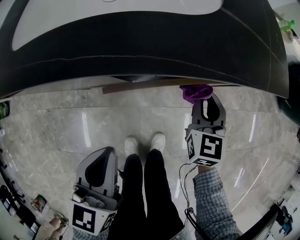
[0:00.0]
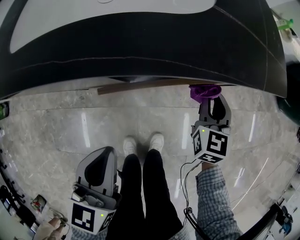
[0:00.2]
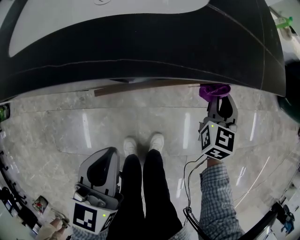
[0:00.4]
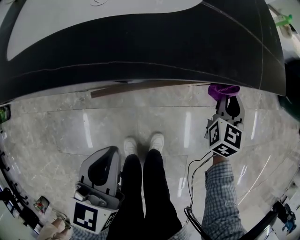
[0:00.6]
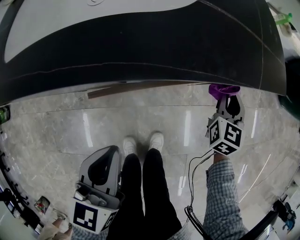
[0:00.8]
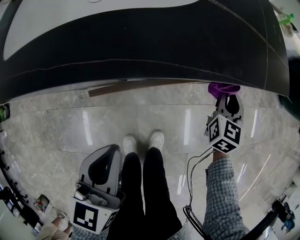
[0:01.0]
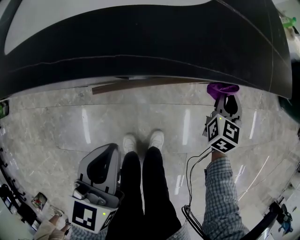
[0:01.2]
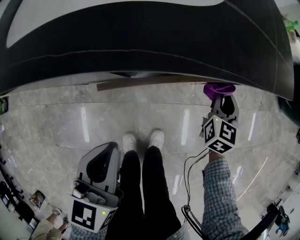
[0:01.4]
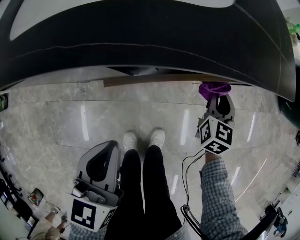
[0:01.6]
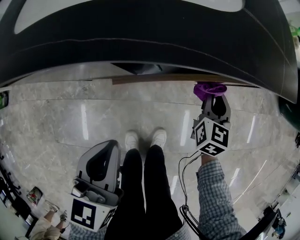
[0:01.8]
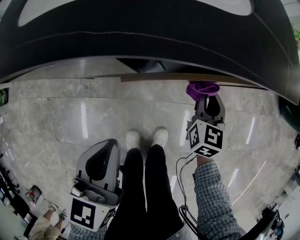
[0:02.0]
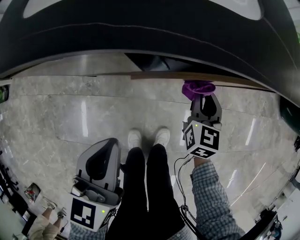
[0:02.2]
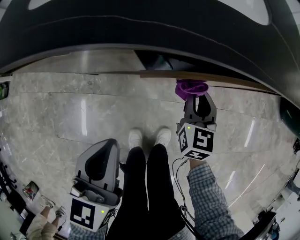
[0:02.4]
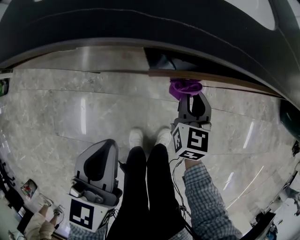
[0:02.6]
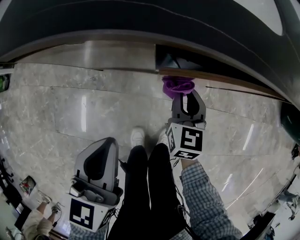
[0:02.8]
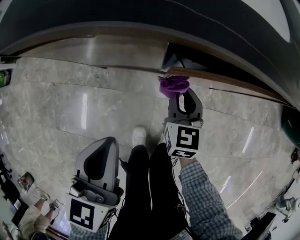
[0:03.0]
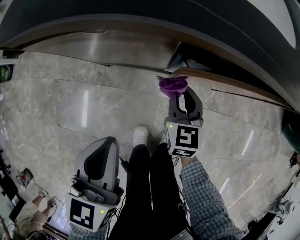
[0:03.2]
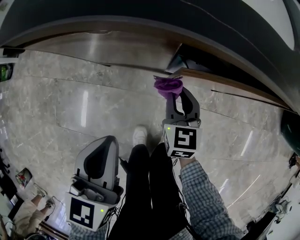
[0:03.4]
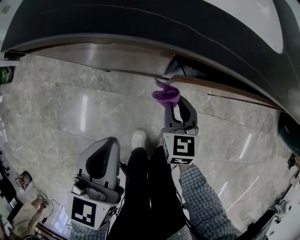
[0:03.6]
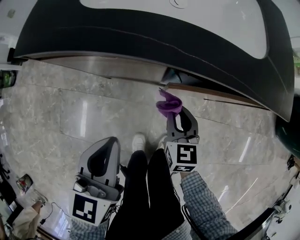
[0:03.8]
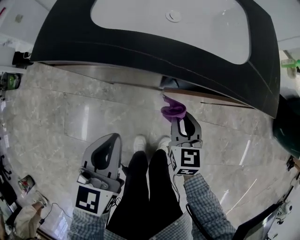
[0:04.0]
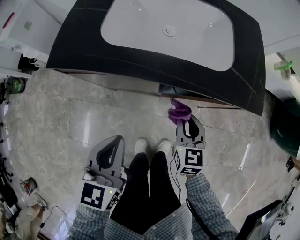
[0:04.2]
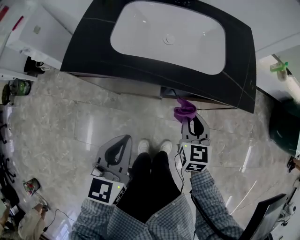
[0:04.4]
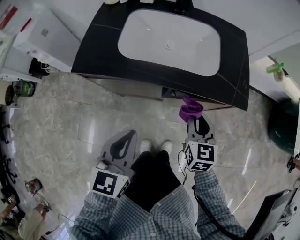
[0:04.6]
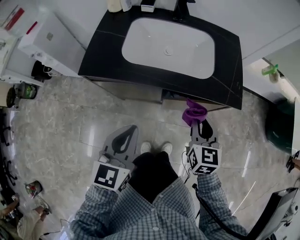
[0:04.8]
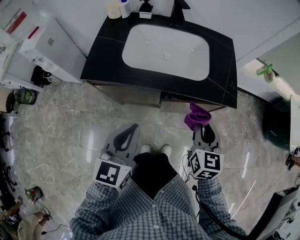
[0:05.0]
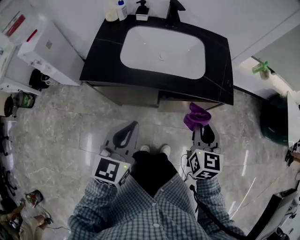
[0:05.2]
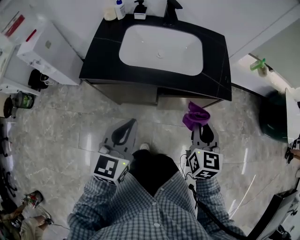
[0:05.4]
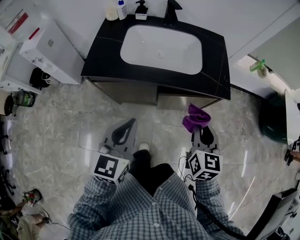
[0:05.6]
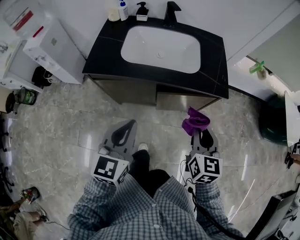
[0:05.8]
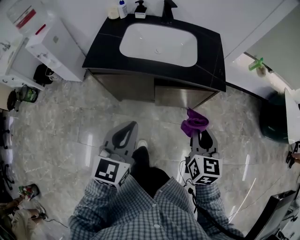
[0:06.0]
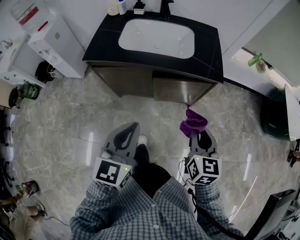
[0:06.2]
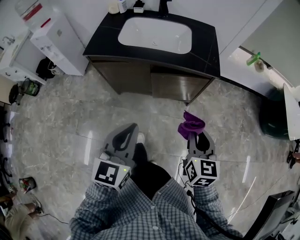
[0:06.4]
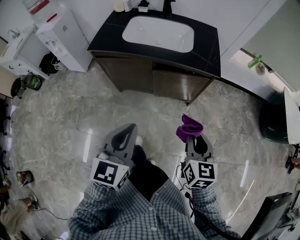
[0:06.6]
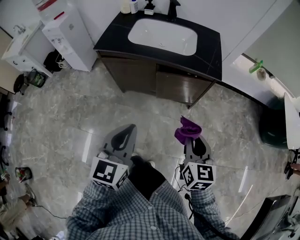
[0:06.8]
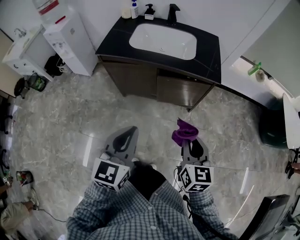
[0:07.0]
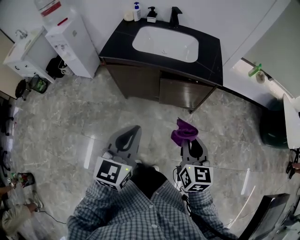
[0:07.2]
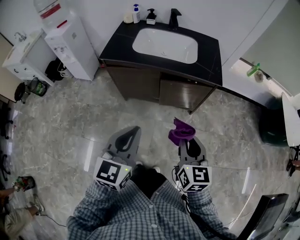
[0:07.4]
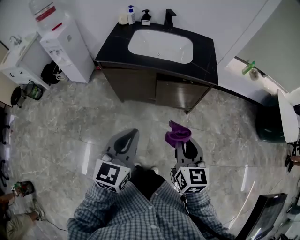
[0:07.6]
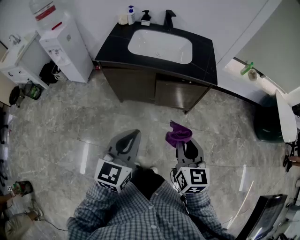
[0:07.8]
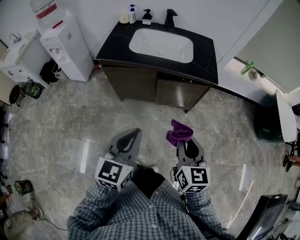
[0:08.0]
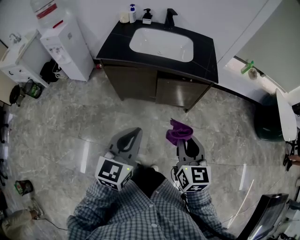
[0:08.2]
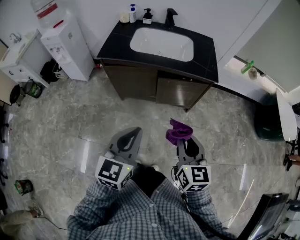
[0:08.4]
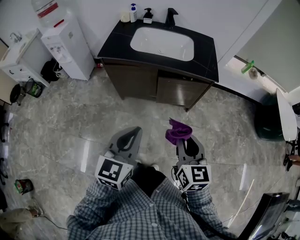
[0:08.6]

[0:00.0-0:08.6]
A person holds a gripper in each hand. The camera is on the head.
0:00.0 to 0:01.4: The right gripper is displaced to the right by approximately 10 cm.
0:01.4 to 0:02.8: The right gripper is displaced to the left by about 25 cm, and rotates approximately 20 degrees. Meanwhile the left gripper shifts about 10 cm to the left and backward.
0:02.8 to 0:04.4: The two grippers go approximately 20 cm upward.
0:04.4 to 0:05.8: The left gripper travels upward and backward by roughly 15 cm, while the right gripper moves upward and backward, roughly 25 cm.
0:05.8 to 0:07.2: Both grippers move backward, about 20 cm.
0:07.2 to 0:08.6: The right gripper changes place by some 5 cm.

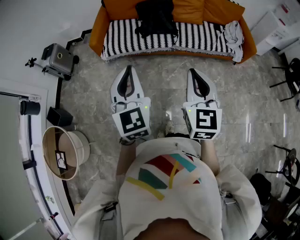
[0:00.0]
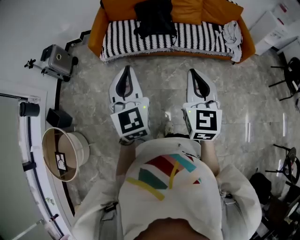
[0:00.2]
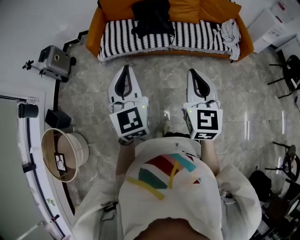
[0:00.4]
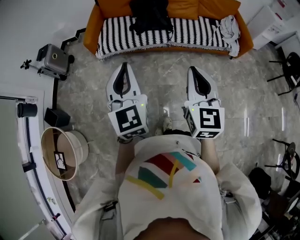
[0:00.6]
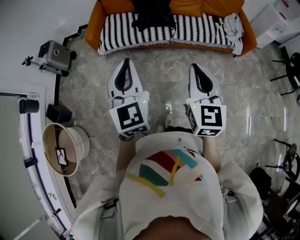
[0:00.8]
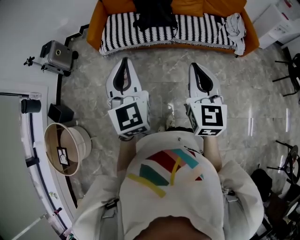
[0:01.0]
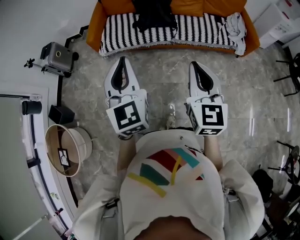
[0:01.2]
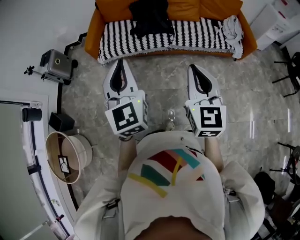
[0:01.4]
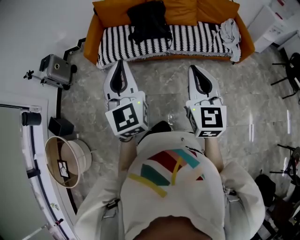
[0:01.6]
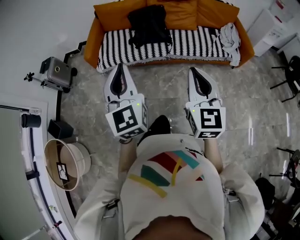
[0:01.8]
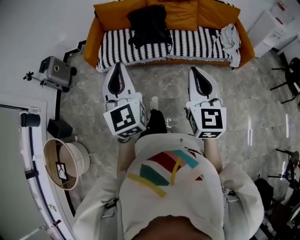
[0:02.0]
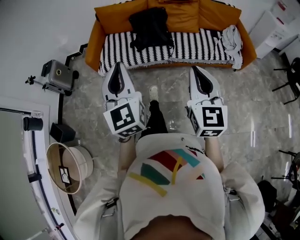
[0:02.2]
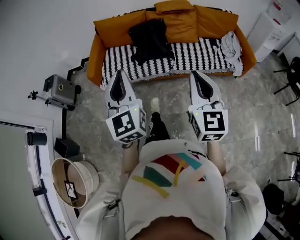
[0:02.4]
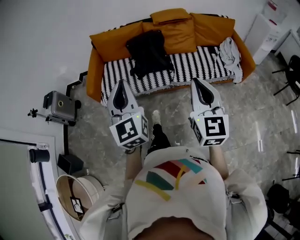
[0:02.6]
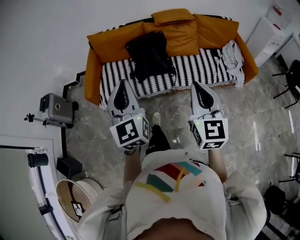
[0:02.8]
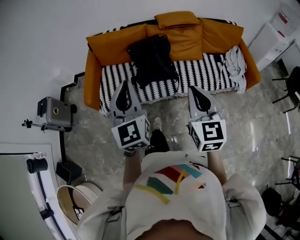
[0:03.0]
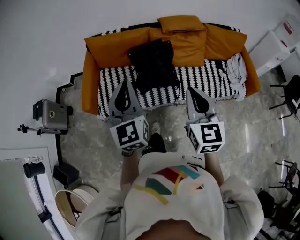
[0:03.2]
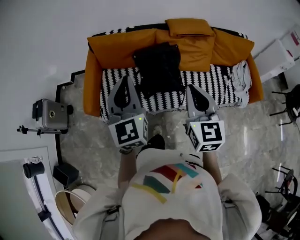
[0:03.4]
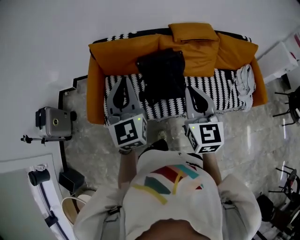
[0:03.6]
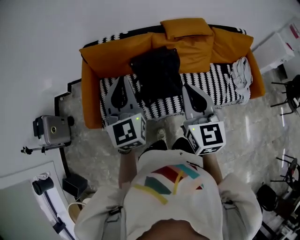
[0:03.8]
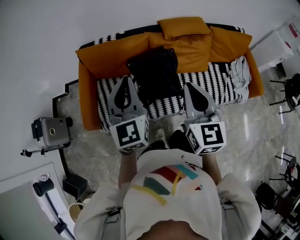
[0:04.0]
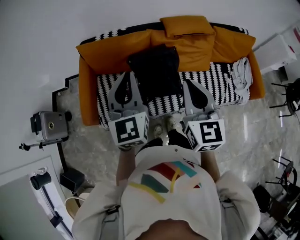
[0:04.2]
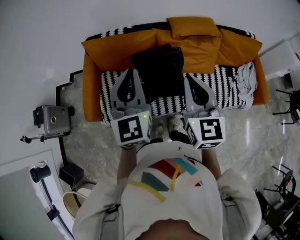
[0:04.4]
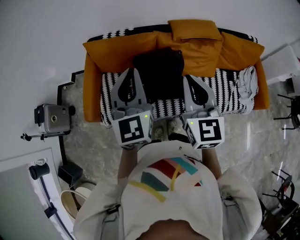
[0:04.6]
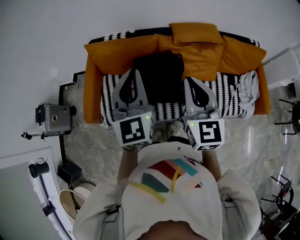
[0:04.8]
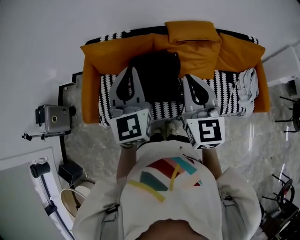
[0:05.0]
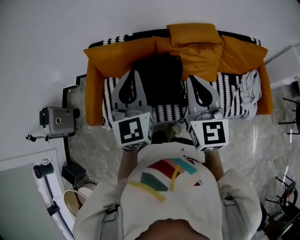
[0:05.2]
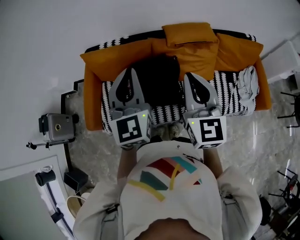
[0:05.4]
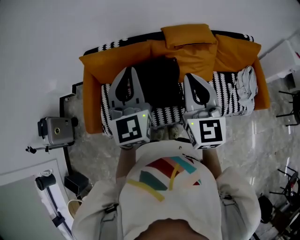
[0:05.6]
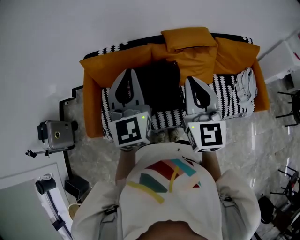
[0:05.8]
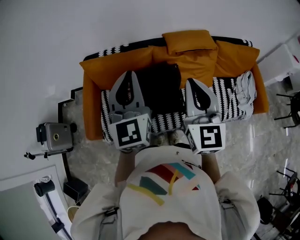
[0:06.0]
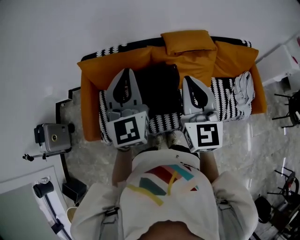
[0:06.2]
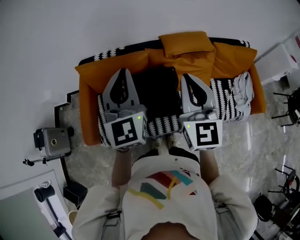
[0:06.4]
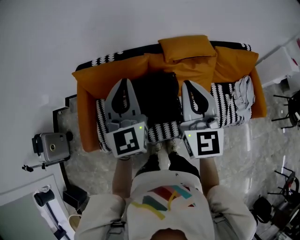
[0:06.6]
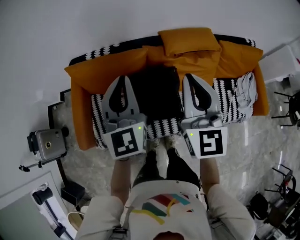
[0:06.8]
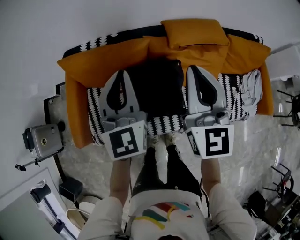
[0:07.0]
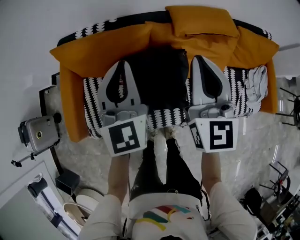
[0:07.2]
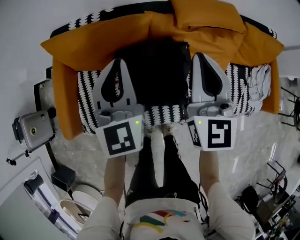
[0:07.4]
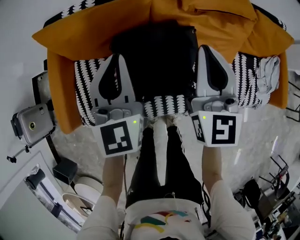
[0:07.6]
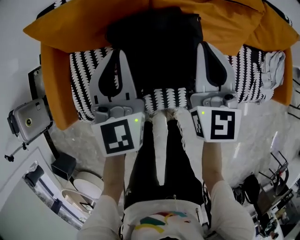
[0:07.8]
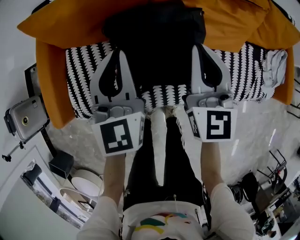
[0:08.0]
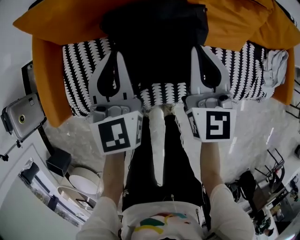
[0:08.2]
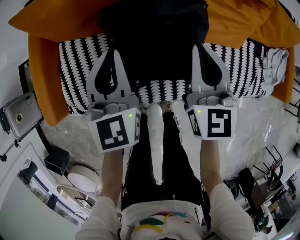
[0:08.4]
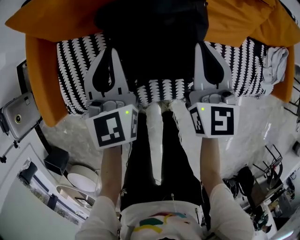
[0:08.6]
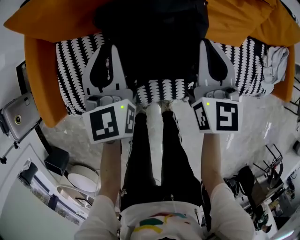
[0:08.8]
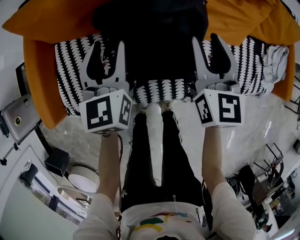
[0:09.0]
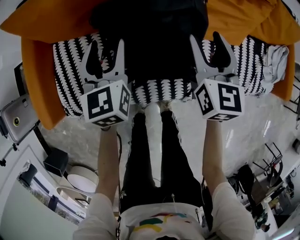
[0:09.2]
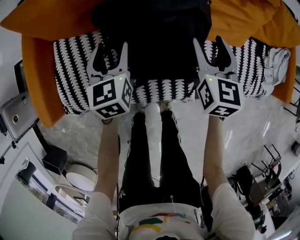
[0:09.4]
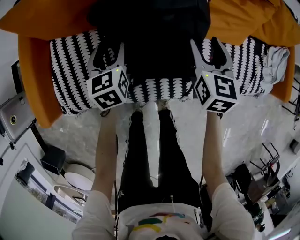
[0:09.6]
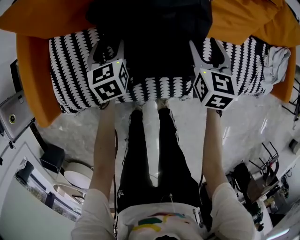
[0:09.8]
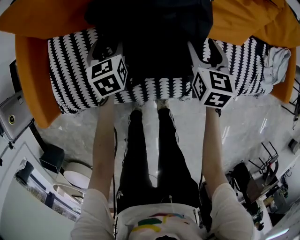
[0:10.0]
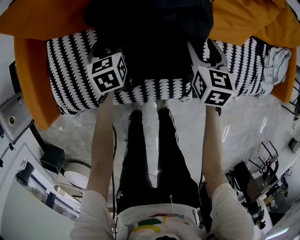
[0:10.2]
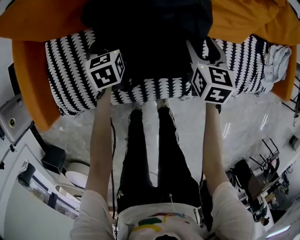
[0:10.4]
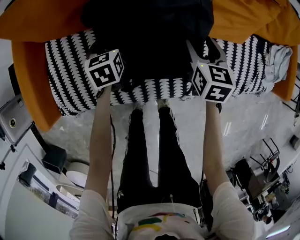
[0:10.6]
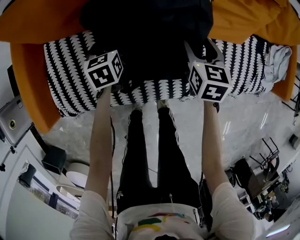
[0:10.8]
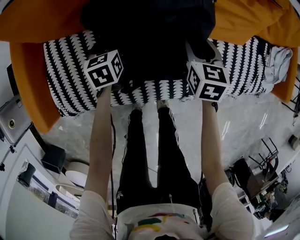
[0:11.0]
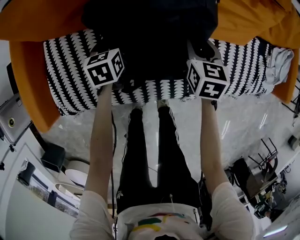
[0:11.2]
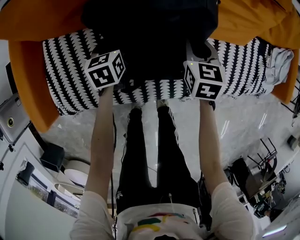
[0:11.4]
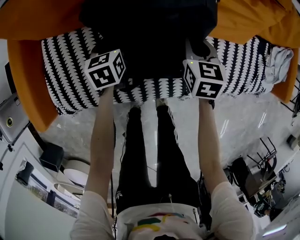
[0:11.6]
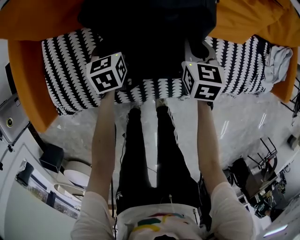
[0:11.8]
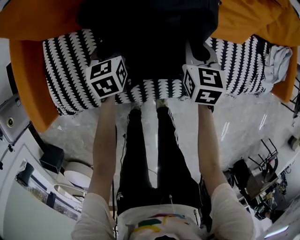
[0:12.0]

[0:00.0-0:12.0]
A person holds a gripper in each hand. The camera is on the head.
0:00.0 to 0:01.6: The right gripper travels to the right by roughly 5 cm. The left gripper shifts by about 5 cm.
0:01.6 to 0:03.0: The two grippers go approximately 30 cm forward.
0:03.0 to 0:04.4: The grippers both shift forward by about 30 cm.
0:04.4 to 0:06.0: The two grippers go about 5 cm forward.
0:06.0 to 0:07.6: The two grippers go approximately 30 cm downward and forward.
0:07.6 to 0:09.0: Both grippers travel together downward, some 15 cm. The left gripper opens; the right gripper opens.
0:09.0 to 0:10.4: Both grippers move downward, roughly 20 cm. The right gripper turns by approximately 20 degrees. The left gripper changes its angle by roughly 30 degrees.
0:10.4 to 0:12.0: The right gripper closes its fingers. The left gripper closes its fingers.

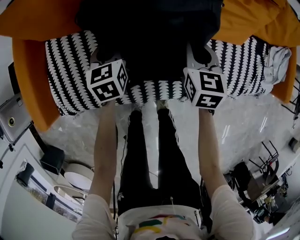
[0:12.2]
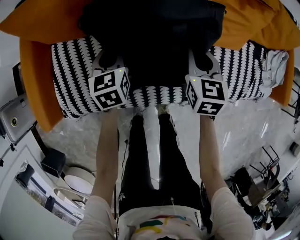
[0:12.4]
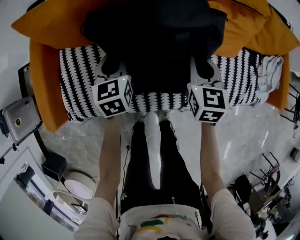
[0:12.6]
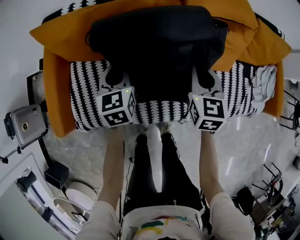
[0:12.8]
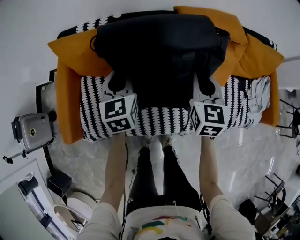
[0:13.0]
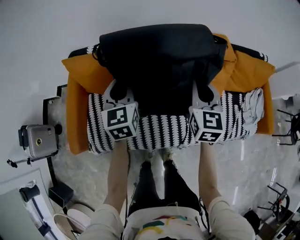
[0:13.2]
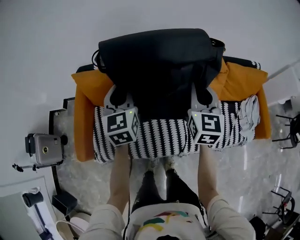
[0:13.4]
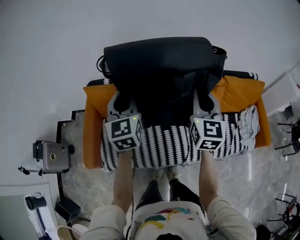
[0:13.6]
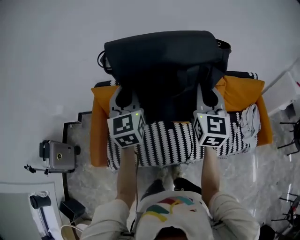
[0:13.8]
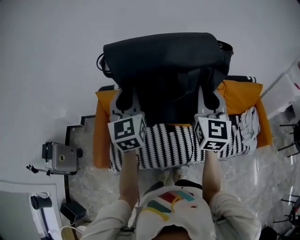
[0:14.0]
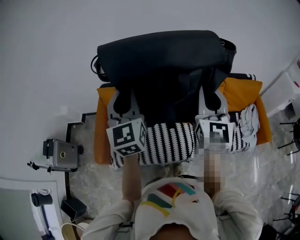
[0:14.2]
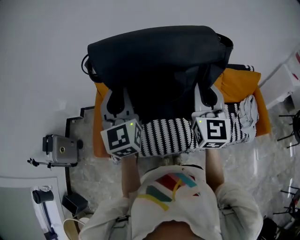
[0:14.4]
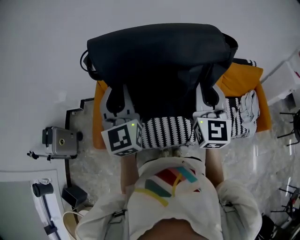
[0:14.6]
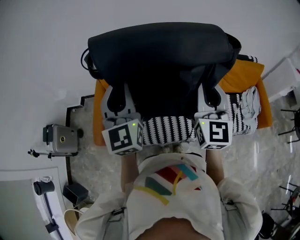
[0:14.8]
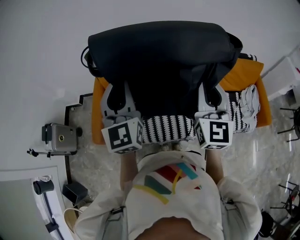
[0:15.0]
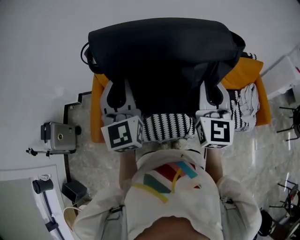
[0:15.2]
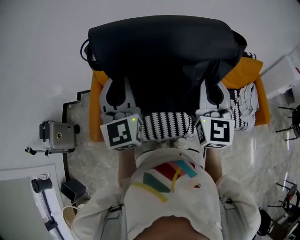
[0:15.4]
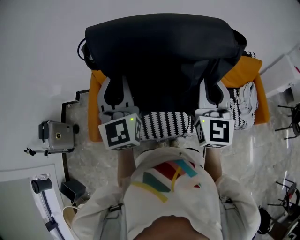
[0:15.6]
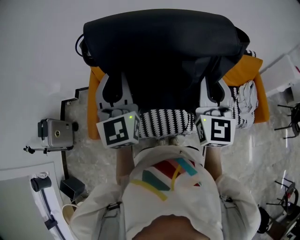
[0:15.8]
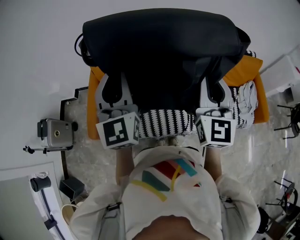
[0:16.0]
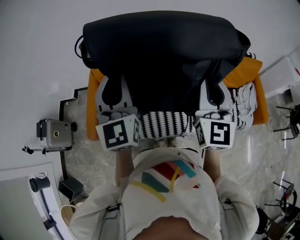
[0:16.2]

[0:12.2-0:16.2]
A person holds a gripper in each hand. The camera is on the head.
0:12.2 to 0:13.6: The grippers both shift upward by about 50 cm. The left gripper tilts its fingers some 30 degrees upward, while the right gripper tips its fingers upward by roughly 30 degrees.
0:13.6 to 0:14.8: Both grippers move backward and upward, about 20 cm.
0:14.8 to 0:16.2: There are only small adjustments of the grippers.
